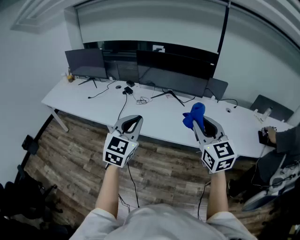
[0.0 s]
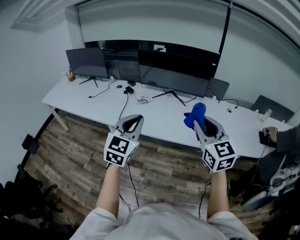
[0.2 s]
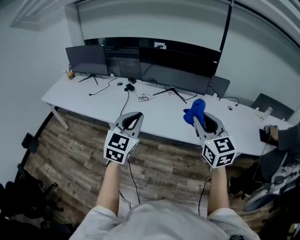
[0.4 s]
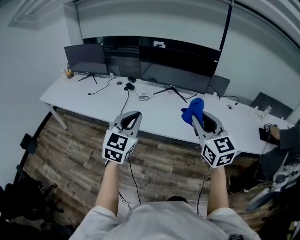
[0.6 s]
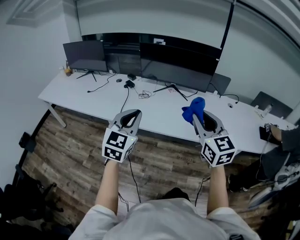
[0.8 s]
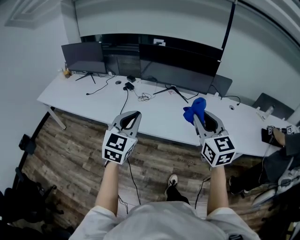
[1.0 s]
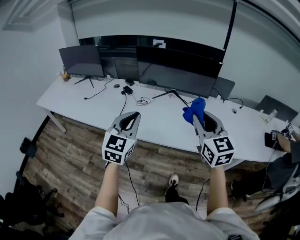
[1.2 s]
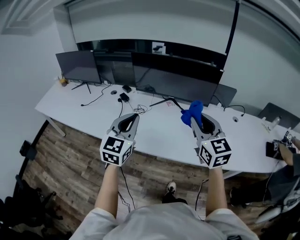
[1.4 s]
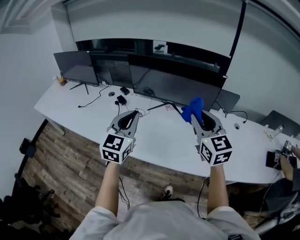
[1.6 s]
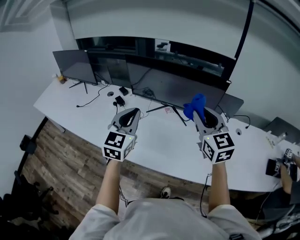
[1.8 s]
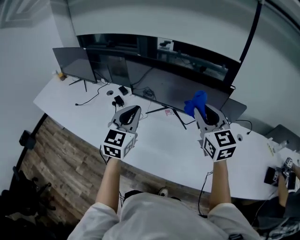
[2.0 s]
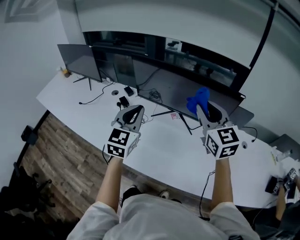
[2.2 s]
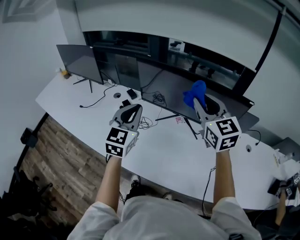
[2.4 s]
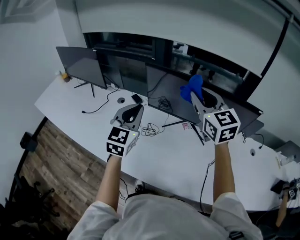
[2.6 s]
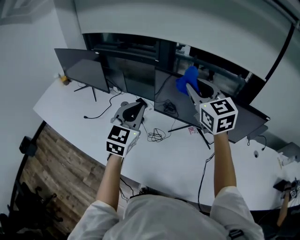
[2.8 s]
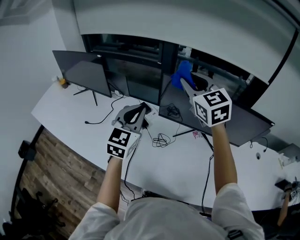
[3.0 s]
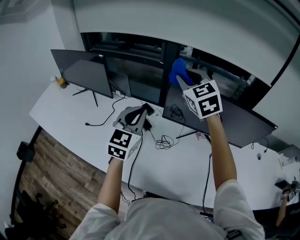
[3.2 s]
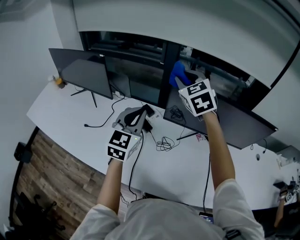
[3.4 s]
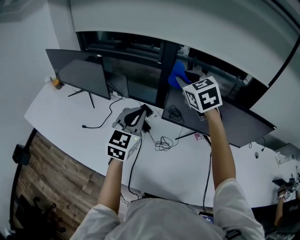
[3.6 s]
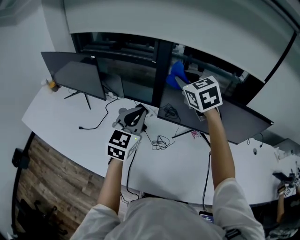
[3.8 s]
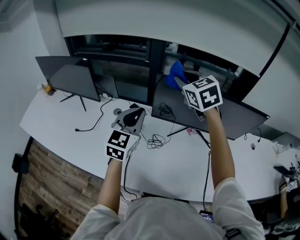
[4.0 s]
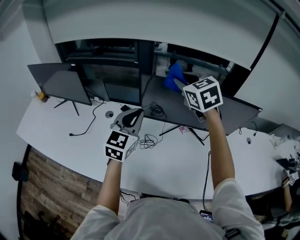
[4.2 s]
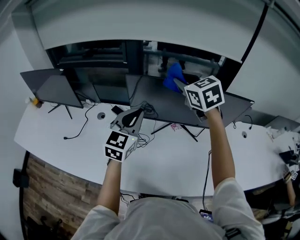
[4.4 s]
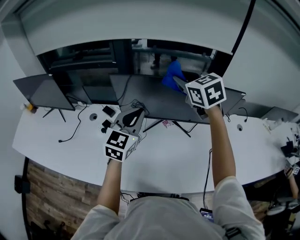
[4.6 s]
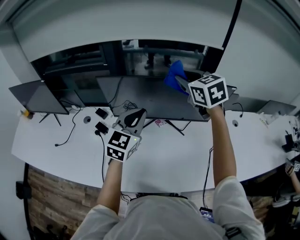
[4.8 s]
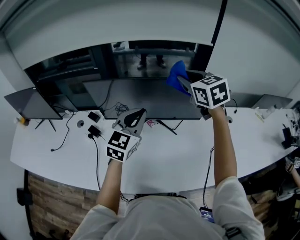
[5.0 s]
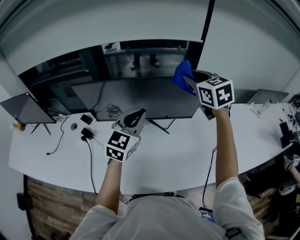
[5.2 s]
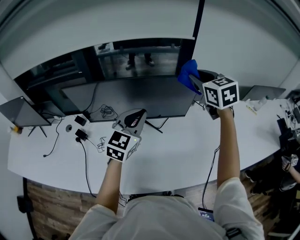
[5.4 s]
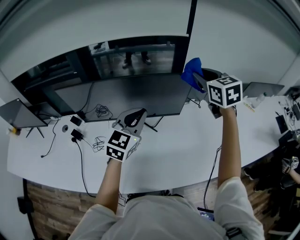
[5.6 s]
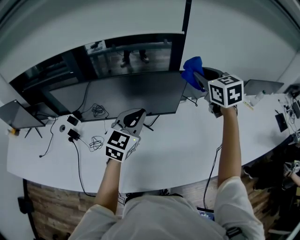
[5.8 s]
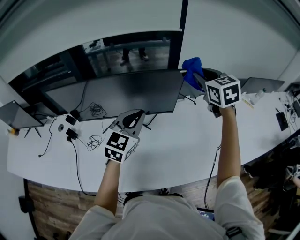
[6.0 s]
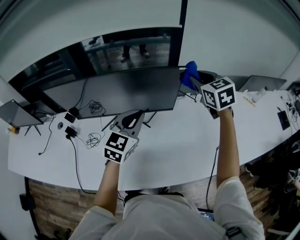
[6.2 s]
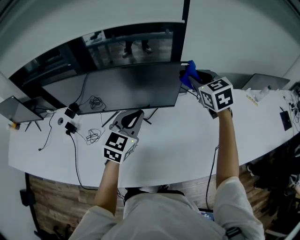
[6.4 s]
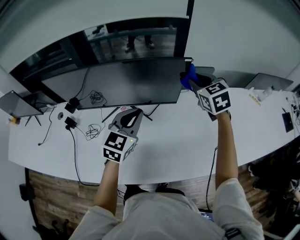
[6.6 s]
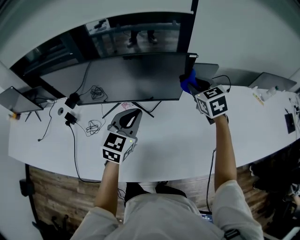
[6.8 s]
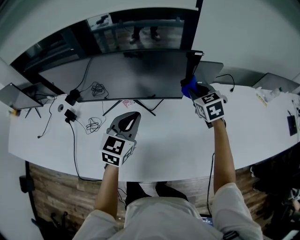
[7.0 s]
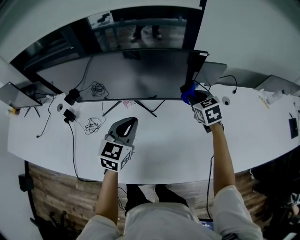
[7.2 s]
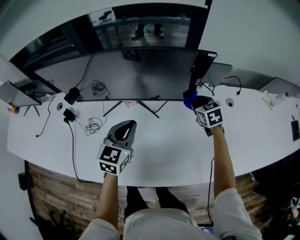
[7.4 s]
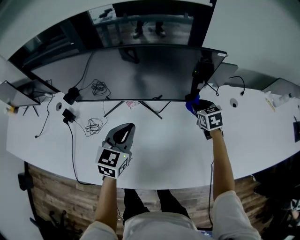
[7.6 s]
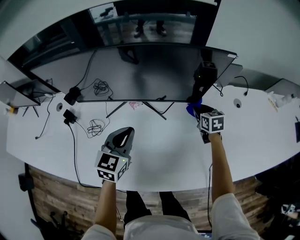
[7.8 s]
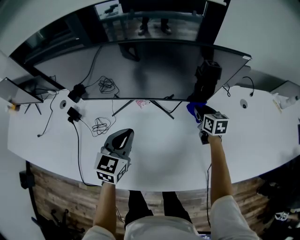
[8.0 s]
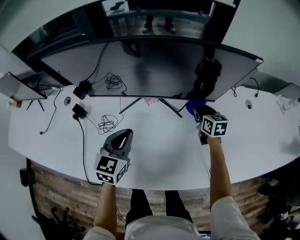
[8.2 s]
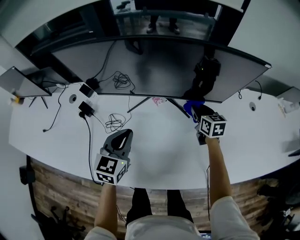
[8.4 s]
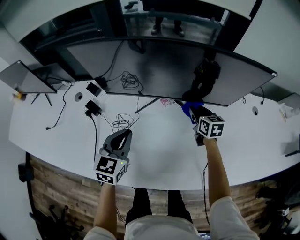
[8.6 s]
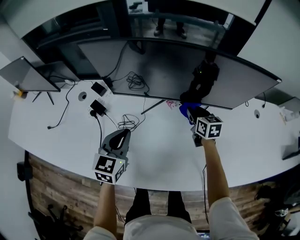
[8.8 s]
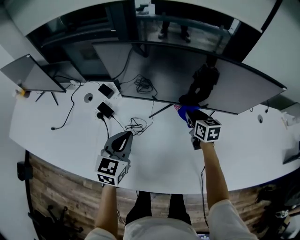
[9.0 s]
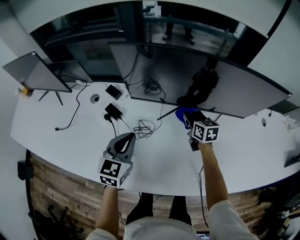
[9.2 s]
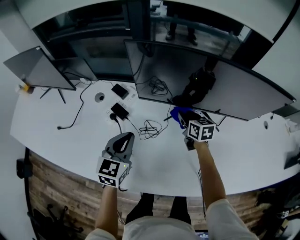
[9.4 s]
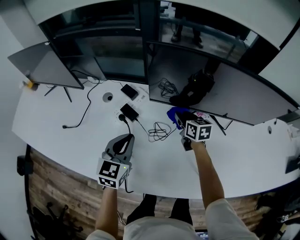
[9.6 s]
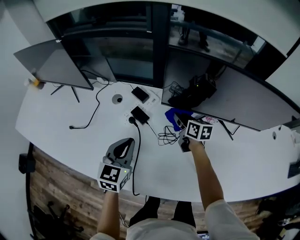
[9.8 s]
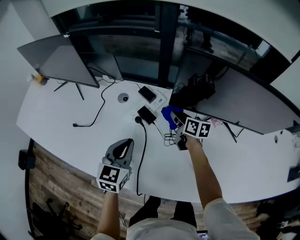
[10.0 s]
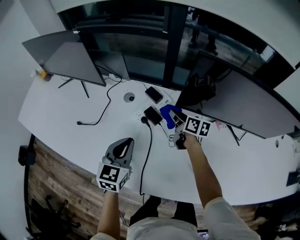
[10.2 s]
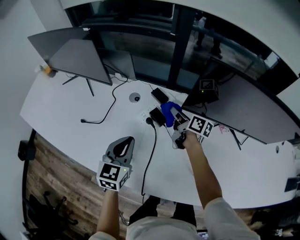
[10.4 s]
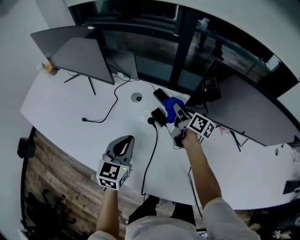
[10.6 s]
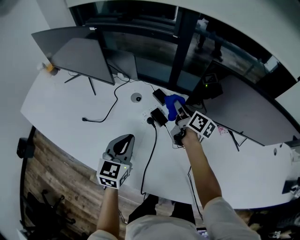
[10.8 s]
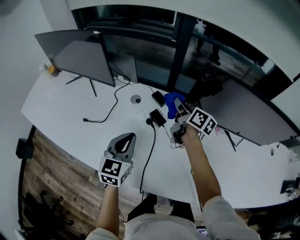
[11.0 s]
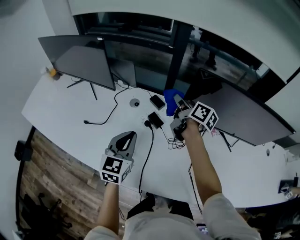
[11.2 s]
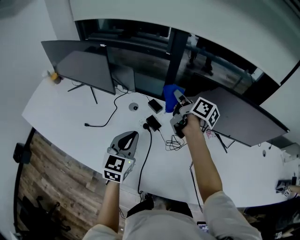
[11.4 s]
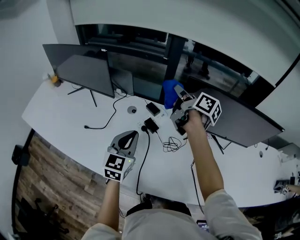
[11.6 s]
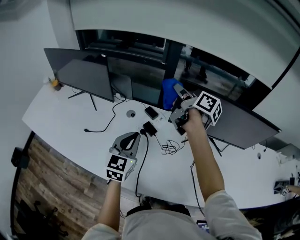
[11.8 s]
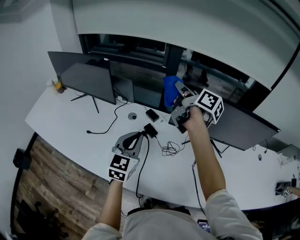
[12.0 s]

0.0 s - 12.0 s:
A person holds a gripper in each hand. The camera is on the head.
0.0 s - 1.6 s: The two grippers go about 25 cm forward.
1.6 s - 3.0 s: Both grippers move forward and to the left, roughly 40 cm.
3.0 s - 4.4 s: The grippers both shift to the right by approximately 10 cm.
4.4 s - 6.0 s: The grippers both shift to the right by roughly 40 cm. The right gripper changes its angle by roughly 20 degrees.
6.0 s - 7.6 s: The right gripper travels downward by roughly 35 cm, and swivels roughly 20 degrees. The left gripper travels downward and to the left by some 20 cm.
7.6 s - 9.0 s: Both grippers travel together to the left, about 30 cm.
9.0 s - 10.4 s: The two grippers go some 30 cm to the left. The right gripper swivels roughly 40 degrees.
10.4 s - 12.0 s: The right gripper goes approximately 35 cm upward; the left gripper shifts some 15 cm upward.

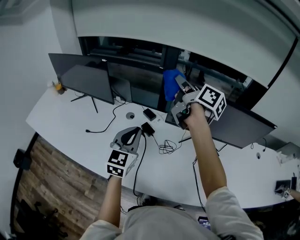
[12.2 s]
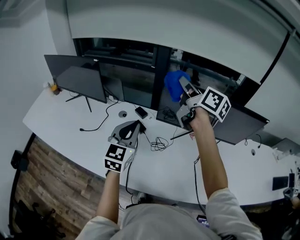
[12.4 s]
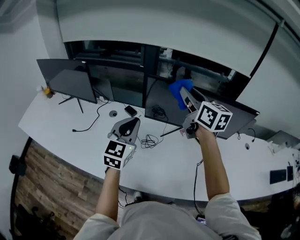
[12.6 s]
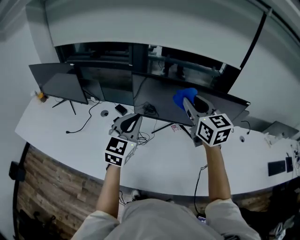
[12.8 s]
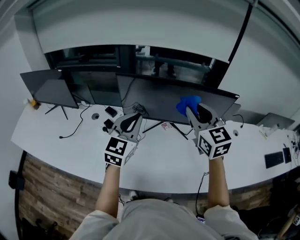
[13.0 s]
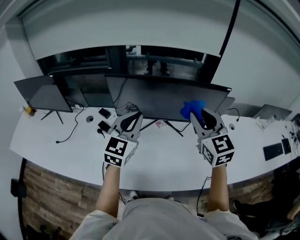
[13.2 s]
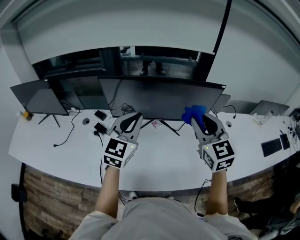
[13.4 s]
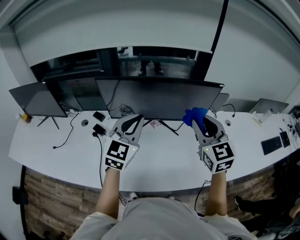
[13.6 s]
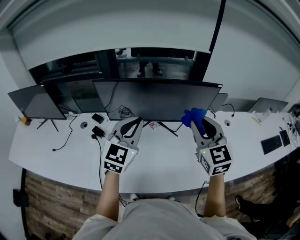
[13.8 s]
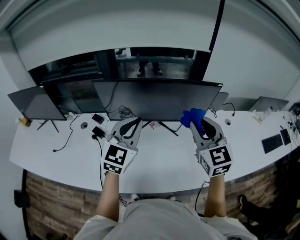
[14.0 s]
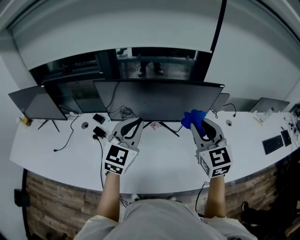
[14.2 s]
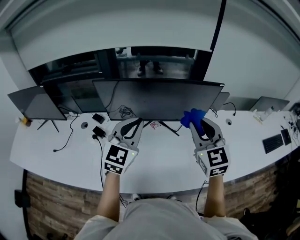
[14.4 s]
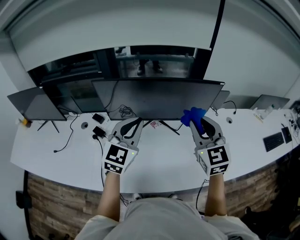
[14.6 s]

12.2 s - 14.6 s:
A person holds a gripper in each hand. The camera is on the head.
12.2 s - 13.4 s: The right gripper shifts roughly 40 cm to the right and backward, and rotates around the line of its fingers by approximately 70 degrees, counterclockwise from behind; the left gripper is displaced to the right by roughly 30 cm, and rotates approximately 20 degrees.
13.4 s - 14.6 s: The grippers stay close to where they were, moving slightly.

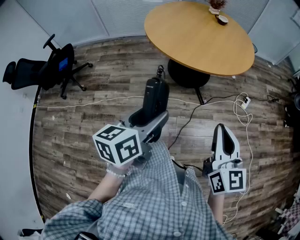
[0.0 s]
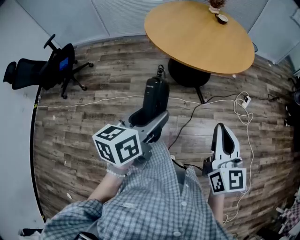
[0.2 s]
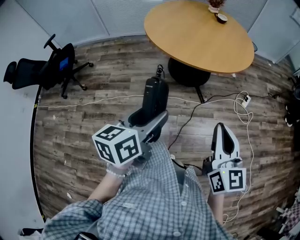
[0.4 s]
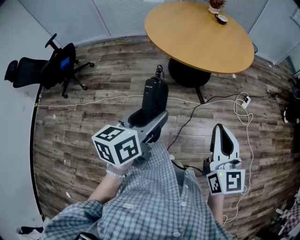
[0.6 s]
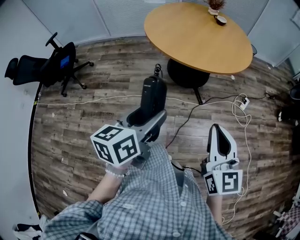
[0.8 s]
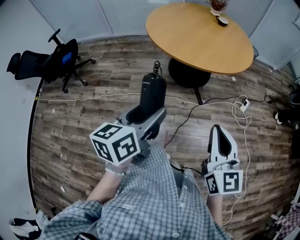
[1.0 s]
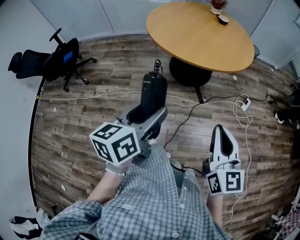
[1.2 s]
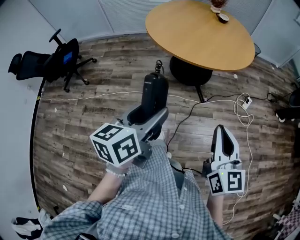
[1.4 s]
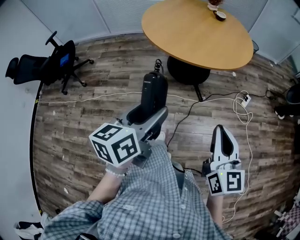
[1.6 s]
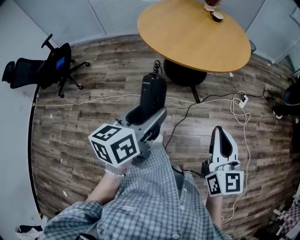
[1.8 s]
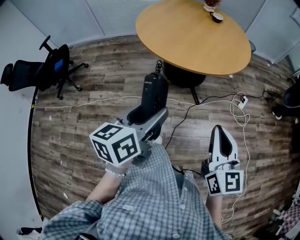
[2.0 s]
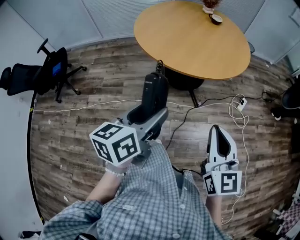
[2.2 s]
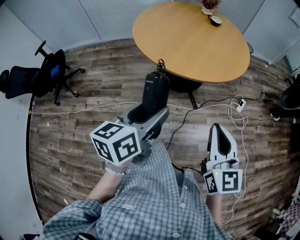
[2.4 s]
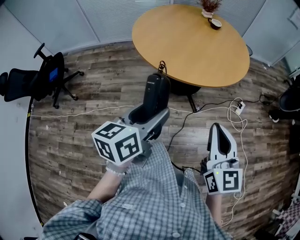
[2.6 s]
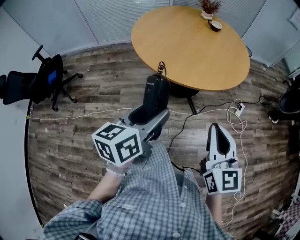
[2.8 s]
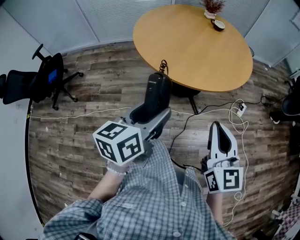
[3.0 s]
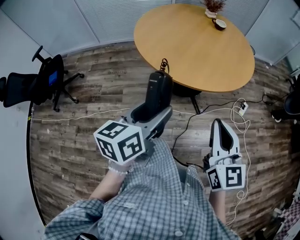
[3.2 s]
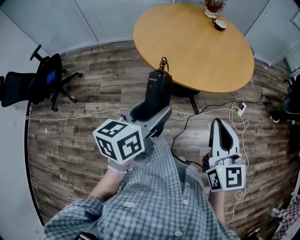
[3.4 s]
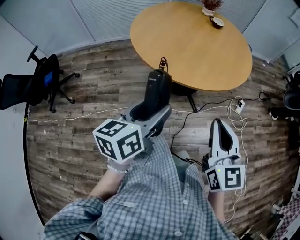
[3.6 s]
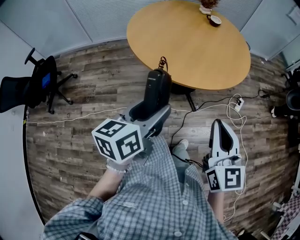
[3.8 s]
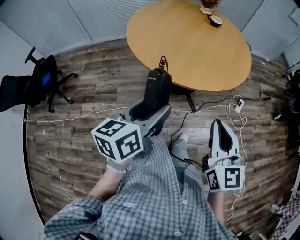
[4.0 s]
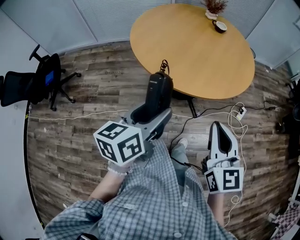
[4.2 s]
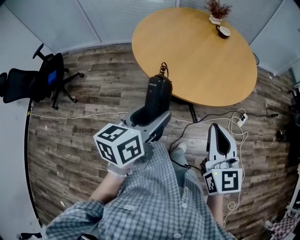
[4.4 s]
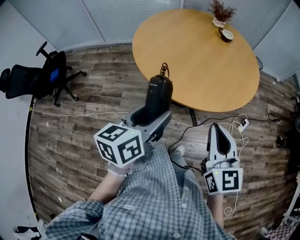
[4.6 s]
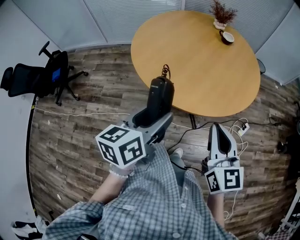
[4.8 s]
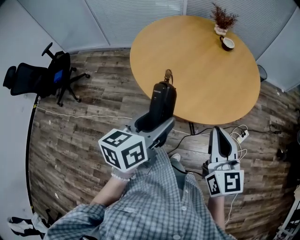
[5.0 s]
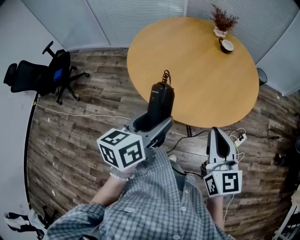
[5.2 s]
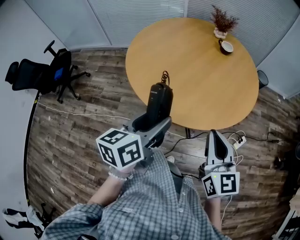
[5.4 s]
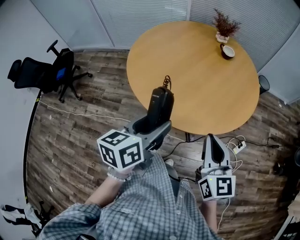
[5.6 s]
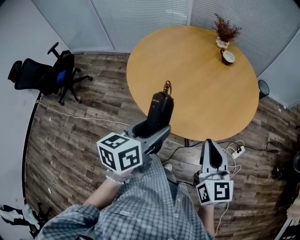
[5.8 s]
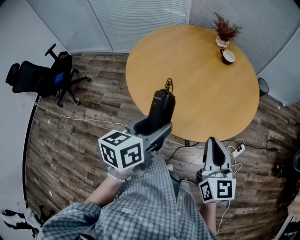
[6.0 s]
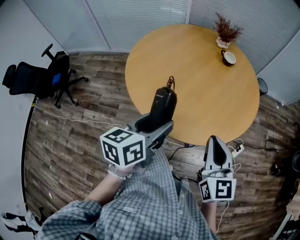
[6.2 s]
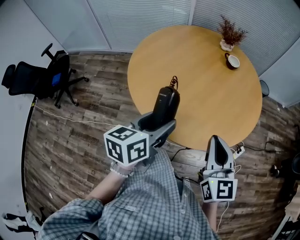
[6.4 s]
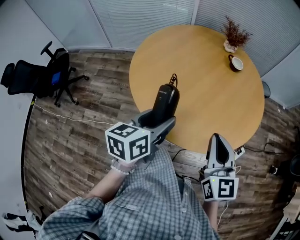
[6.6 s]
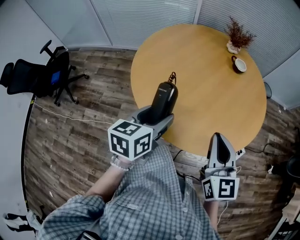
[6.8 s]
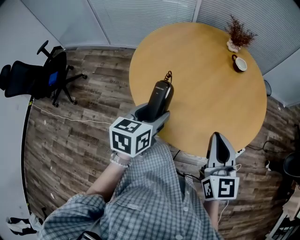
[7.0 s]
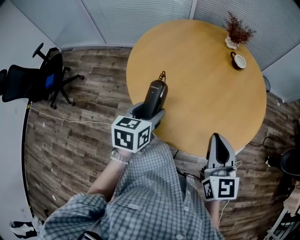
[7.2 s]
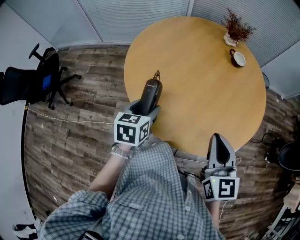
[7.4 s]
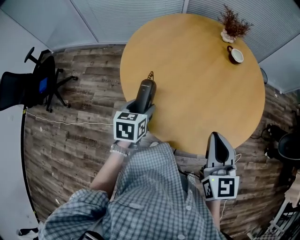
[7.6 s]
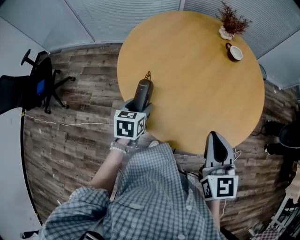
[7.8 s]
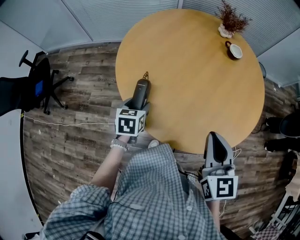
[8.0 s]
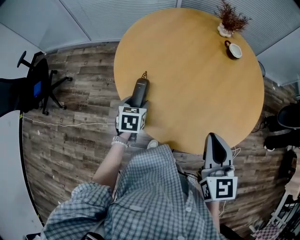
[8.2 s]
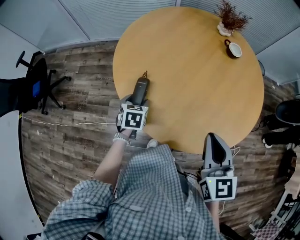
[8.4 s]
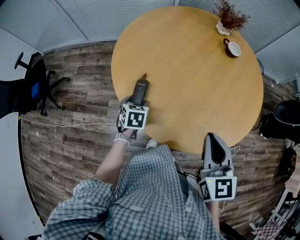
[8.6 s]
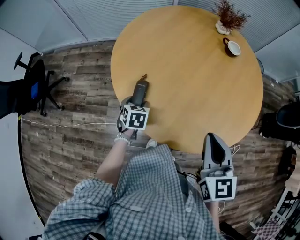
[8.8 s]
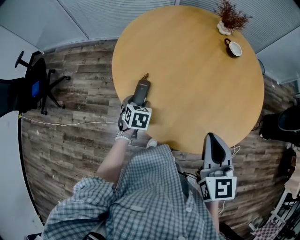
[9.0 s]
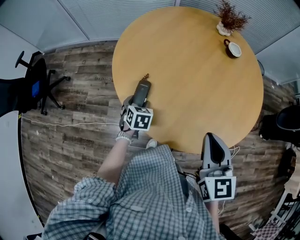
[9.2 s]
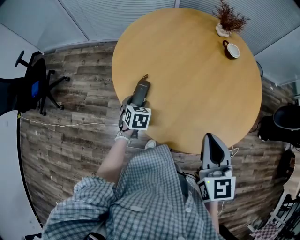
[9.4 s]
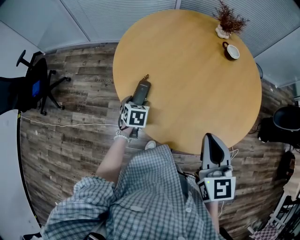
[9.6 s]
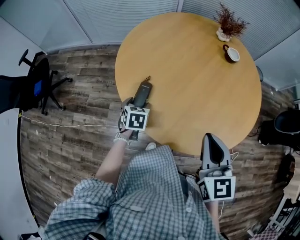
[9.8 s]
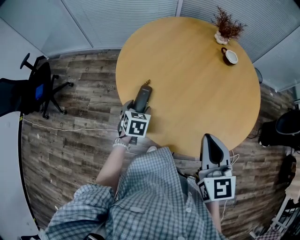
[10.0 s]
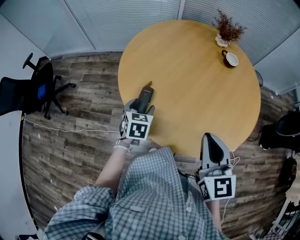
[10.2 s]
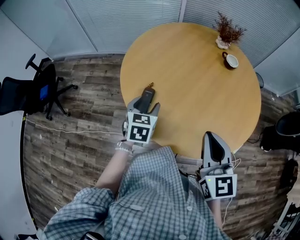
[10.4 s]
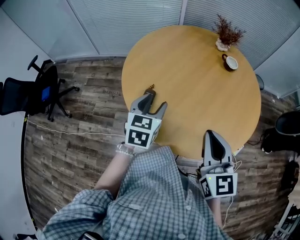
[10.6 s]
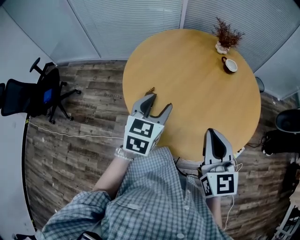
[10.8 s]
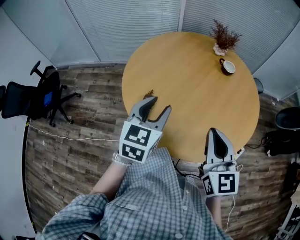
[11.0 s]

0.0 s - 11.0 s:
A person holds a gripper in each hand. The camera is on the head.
0.0 s - 1.6 s: Both grippers travel together to the right, some 5 cm.
1.6 s - 3.2 s: The left gripper moves forward, roughly 20 cm; the right gripper is displaced forward and to the left by approximately 20 cm.
3.2 s - 4.8 s: Both grippers move forward and to the right, some 15 cm.
4.8 s - 6.2 s: Both grippers move forward and to the right, about 10 cm.
6.2 s - 7.8 s: The left gripper moves forward, to the left and downward, some 30 cm, and rotates approximately 30 degrees. Meanwhile the right gripper shifts some 15 cm forward and to the left.
7.8 s - 9.4 s: The left gripper shifts approximately 10 cm downward.
9.4 s - 11.0 s: The left gripper goes approximately 25 cm upward, and points its fingers approximately 30 degrees further upward; the right gripper travels upward by some 5 cm.
